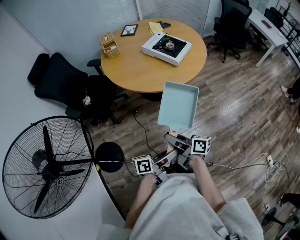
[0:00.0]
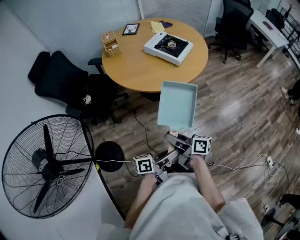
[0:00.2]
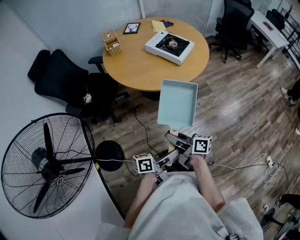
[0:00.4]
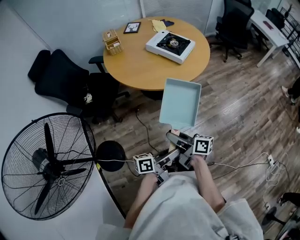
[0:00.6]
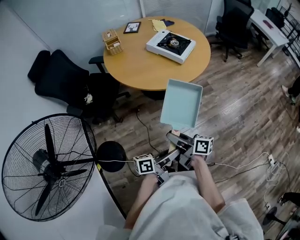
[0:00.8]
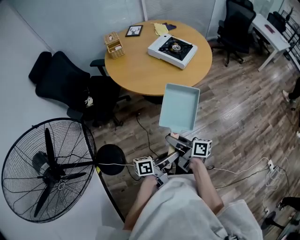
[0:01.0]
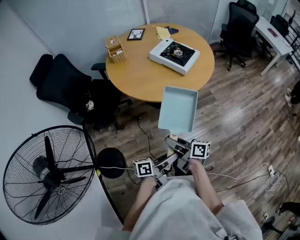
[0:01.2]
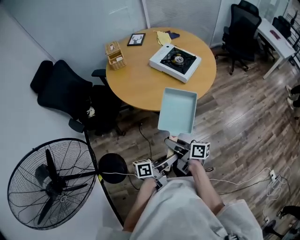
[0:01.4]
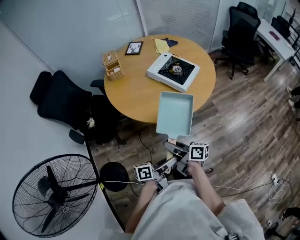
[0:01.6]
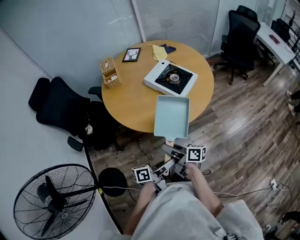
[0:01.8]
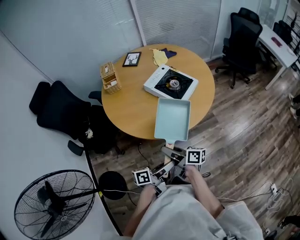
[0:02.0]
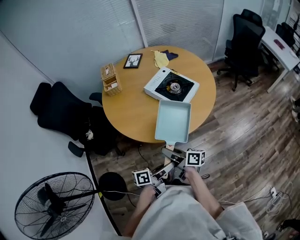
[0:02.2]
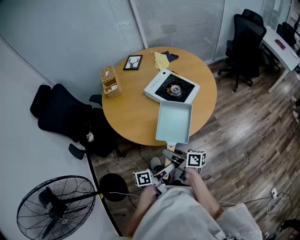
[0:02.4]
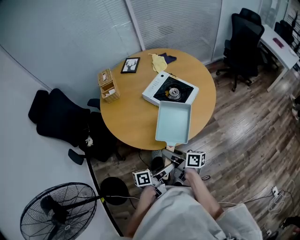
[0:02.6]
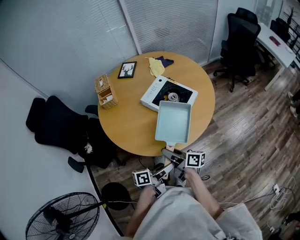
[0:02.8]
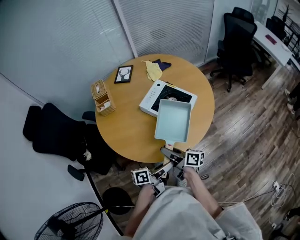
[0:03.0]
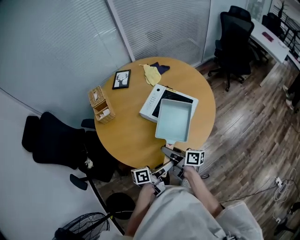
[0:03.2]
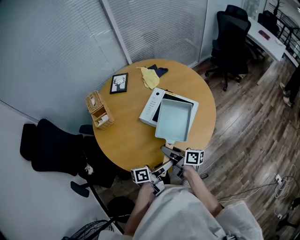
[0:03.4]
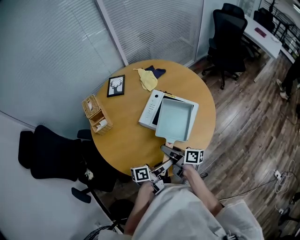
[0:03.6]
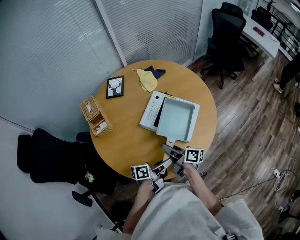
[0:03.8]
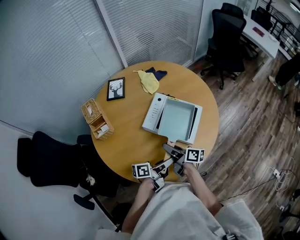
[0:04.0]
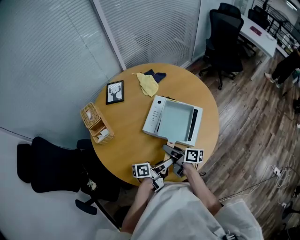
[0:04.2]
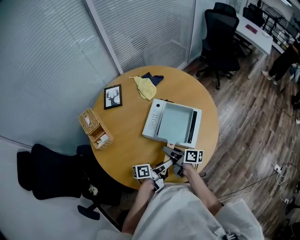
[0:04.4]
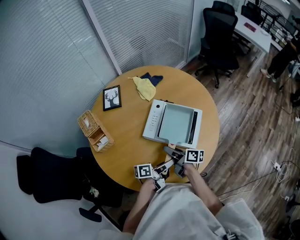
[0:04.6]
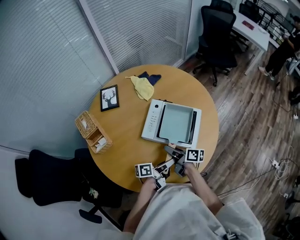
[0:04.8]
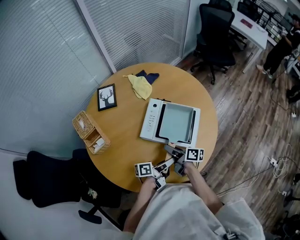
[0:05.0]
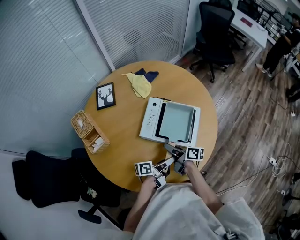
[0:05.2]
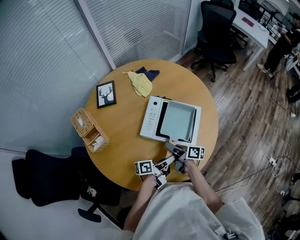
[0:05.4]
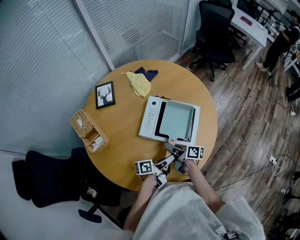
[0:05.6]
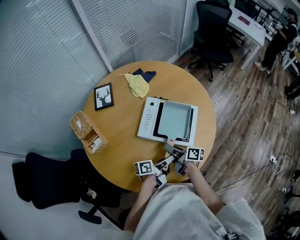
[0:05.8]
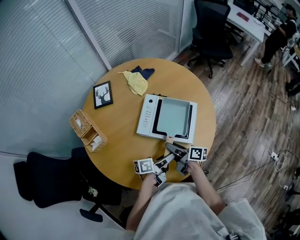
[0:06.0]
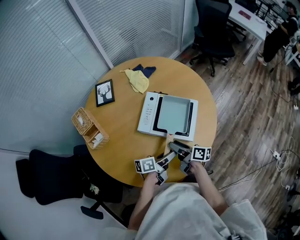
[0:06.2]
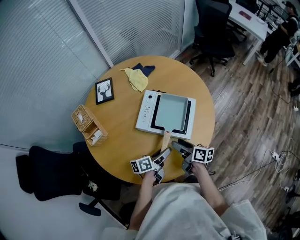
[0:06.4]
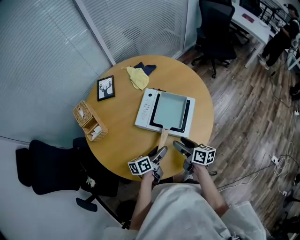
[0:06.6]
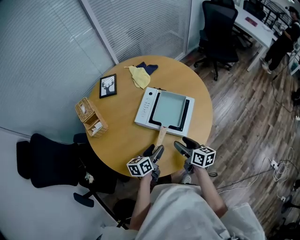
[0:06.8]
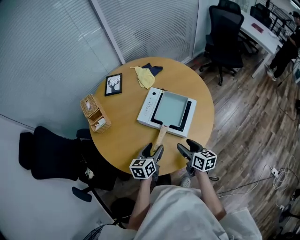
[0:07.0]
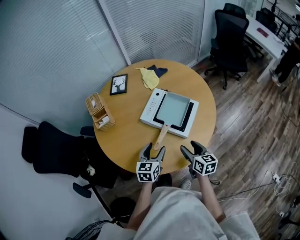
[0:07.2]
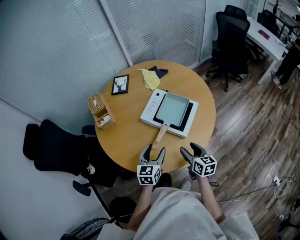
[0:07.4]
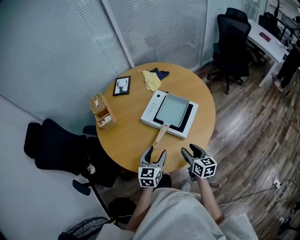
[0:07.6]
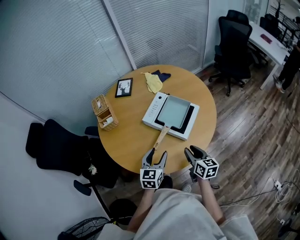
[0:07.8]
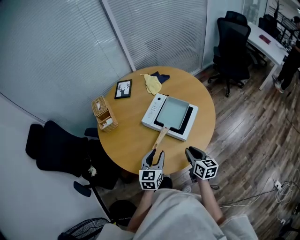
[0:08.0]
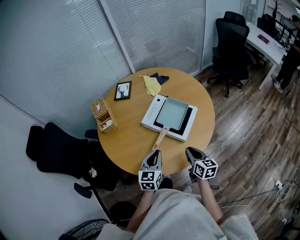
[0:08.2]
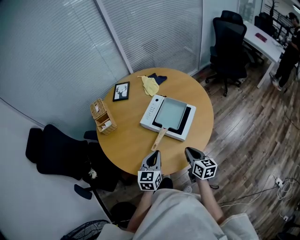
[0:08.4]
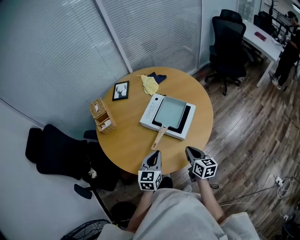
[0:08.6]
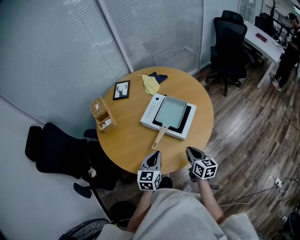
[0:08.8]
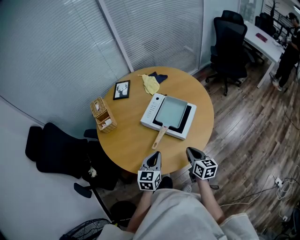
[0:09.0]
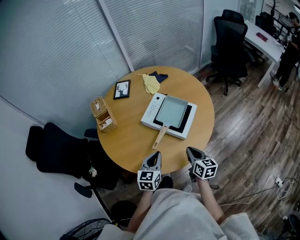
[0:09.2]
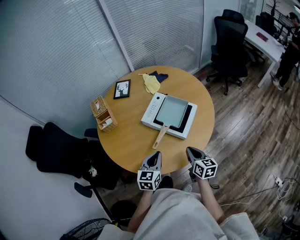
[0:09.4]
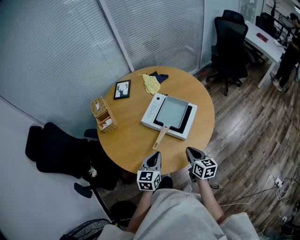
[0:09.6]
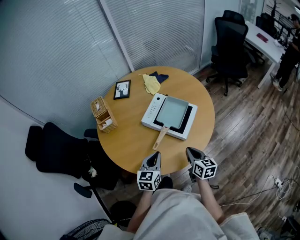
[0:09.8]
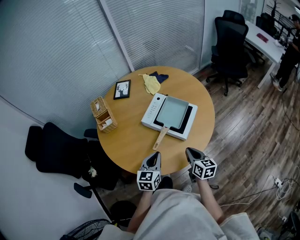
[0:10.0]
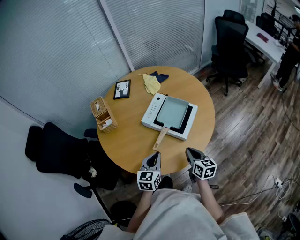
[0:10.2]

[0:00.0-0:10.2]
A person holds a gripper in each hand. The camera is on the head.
0:00.0 to 0:01.4: Both grippers travel together forward, approximately 10 cm.
0:01.4 to 0:03.0: The two grippers go approximately 25 cm forward.
0:03.0 to 0:04.4: The two grippers go about 20 cm forward and to the left.
0:04.4 to 0:05.8: The grippers make only small movements.
0:05.8 to 0:07.2: The right gripper heads to the right, backward and upward, covering roughly 15 cm, and rolls counterclockwise, seen from behind, by roughly 40 degrees; the left gripper goes some 5 cm upward, turns by about 70 degrees, and opens up.
0:07.2 to 0:08.8: The right gripper closes up, while the left gripper ends up approximately 5 cm from where it was, and closes up.
0:08.8 to 0:10.2: Both grippers stay put.

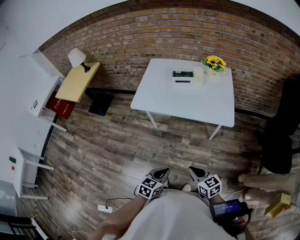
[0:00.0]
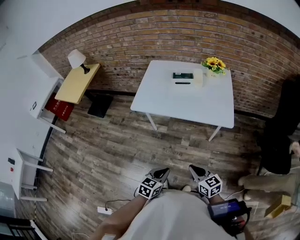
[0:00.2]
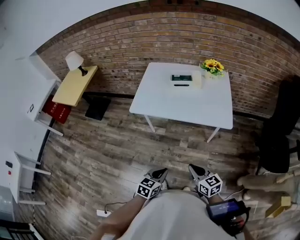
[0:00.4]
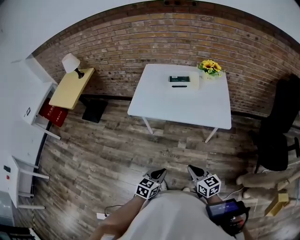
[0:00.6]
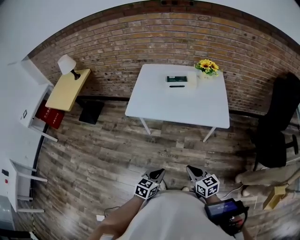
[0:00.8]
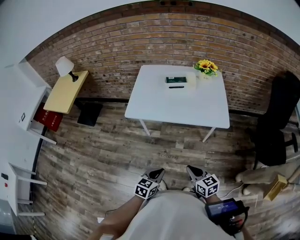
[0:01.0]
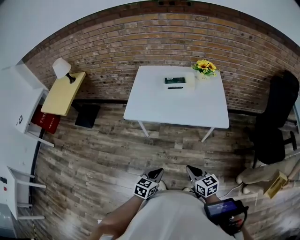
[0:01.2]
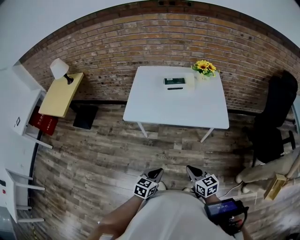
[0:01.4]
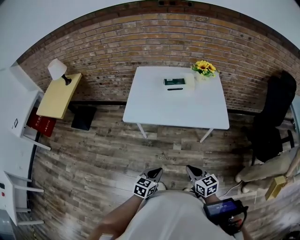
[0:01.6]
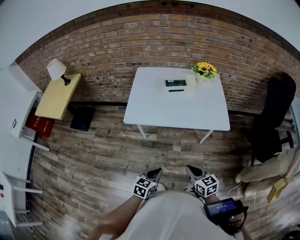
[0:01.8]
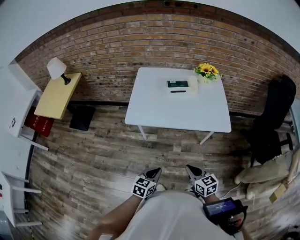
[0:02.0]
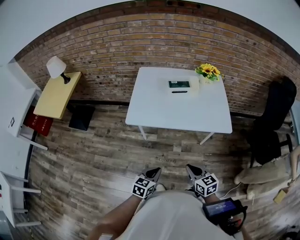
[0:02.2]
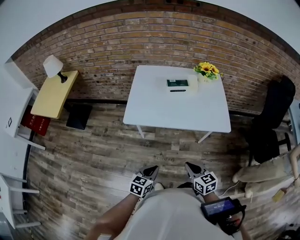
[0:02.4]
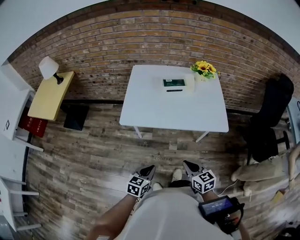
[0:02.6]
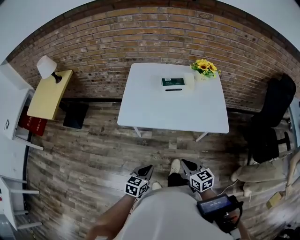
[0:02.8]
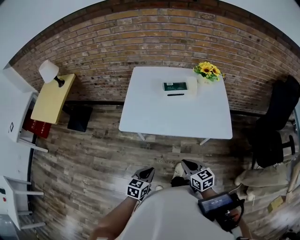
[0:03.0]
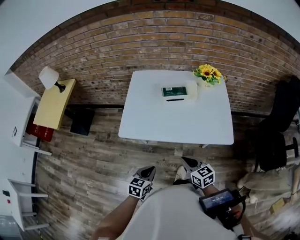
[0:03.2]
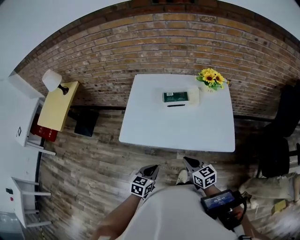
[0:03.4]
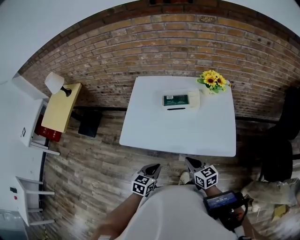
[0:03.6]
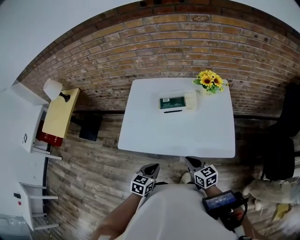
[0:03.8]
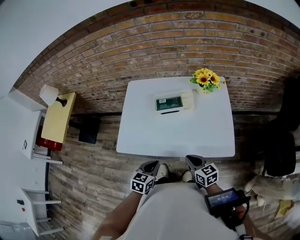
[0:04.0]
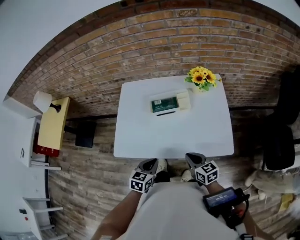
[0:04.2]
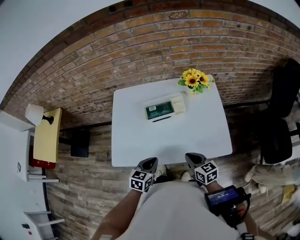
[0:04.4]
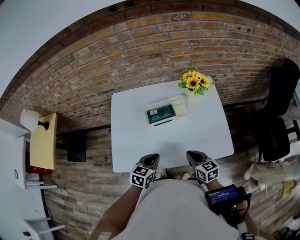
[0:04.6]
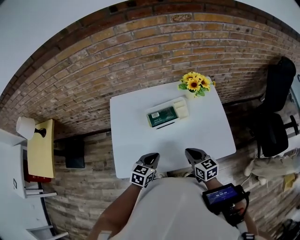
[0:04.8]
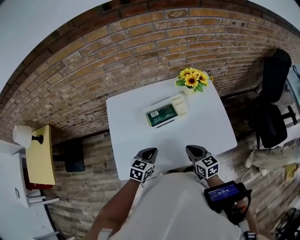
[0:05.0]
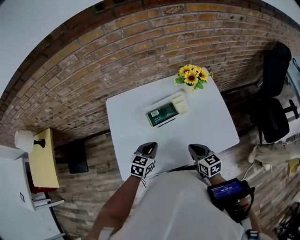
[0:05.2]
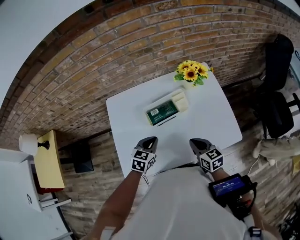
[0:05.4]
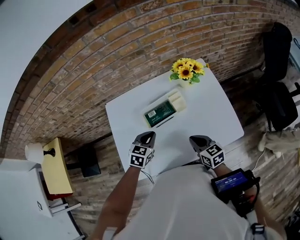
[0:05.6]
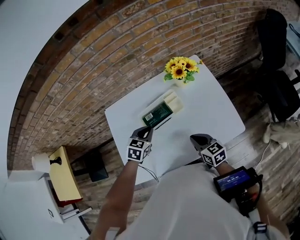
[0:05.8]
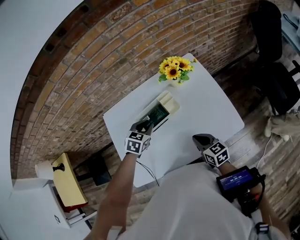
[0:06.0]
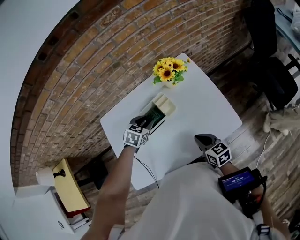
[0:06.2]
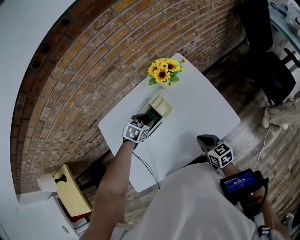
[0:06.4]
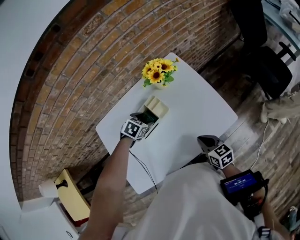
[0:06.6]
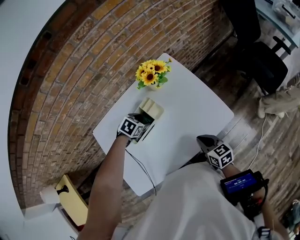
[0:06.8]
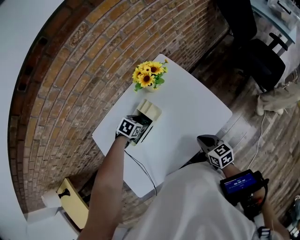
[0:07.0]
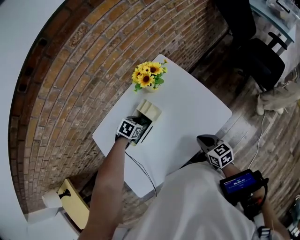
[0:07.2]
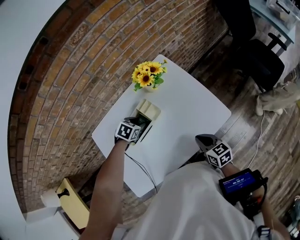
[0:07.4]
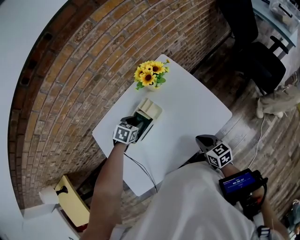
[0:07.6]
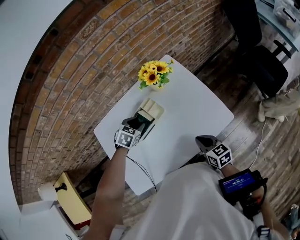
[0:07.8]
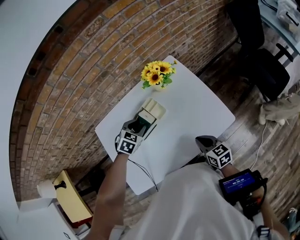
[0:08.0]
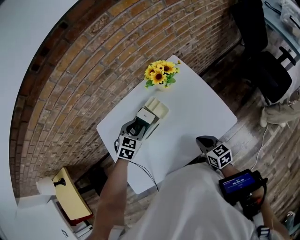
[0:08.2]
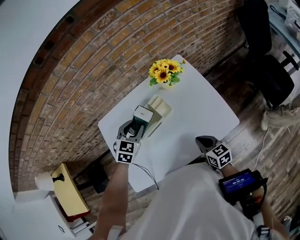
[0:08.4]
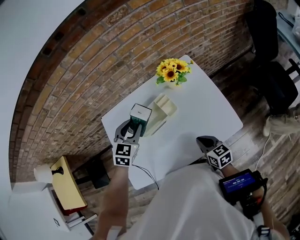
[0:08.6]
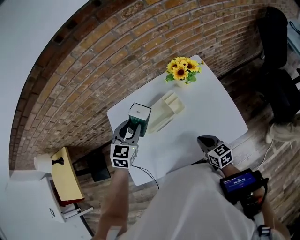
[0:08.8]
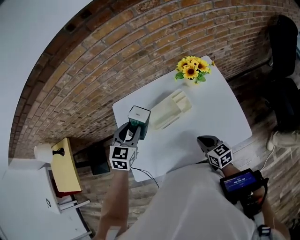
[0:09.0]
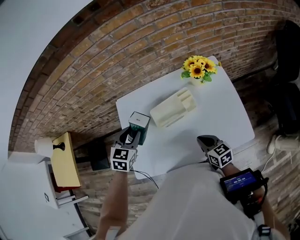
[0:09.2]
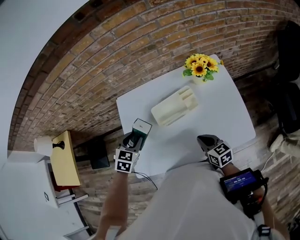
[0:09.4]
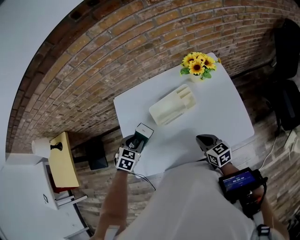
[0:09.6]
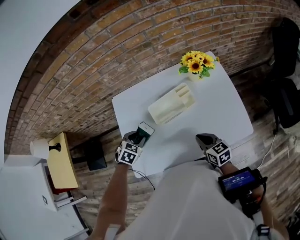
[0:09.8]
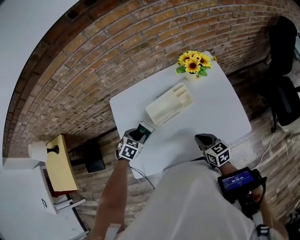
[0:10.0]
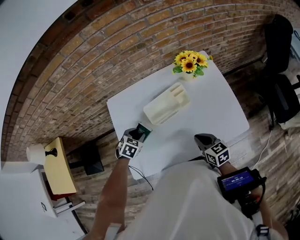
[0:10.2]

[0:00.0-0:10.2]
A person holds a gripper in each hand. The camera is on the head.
0:00.0 to 0:01.4: Both grippers travel together to the left, about 5 cm.
0:01.4 to 0:03.0: The left gripper goes some 10 cm forward and to the left; the right gripper goes some 10 cm forward.
0:03.0 to 0:04.4: The right gripper is displaced forward and to the right by about 20 cm, while the left gripper travels forward by approximately 25 cm.
0:04.4 to 0:05.8: The right gripper shifts roughly 10 cm forward, while the left gripper travels forward by about 20 cm, and turns by about 30 degrees.
0:05.8 to 0:07.2: The right gripper changes place by roughly 10 cm; the left gripper changes place by roughly 15 cm, rotates about 40 degrees, and opens.
0:07.2 to 0:08.8: The right gripper ends up roughly 10 cm from where it was. The left gripper is displaced upward by about 20 cm, and angles its fingers upward, by some 40 degrees.
0:08.8 to 0:10.2: The left gripper travels downward and to the left by approximately 20 cm, and tips its fingers downward by some 30 degrees.

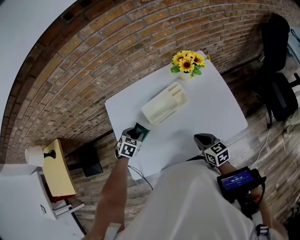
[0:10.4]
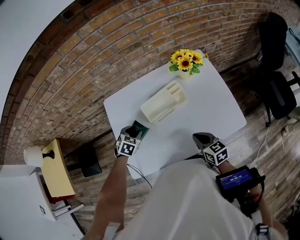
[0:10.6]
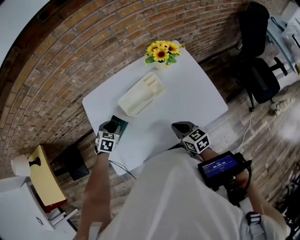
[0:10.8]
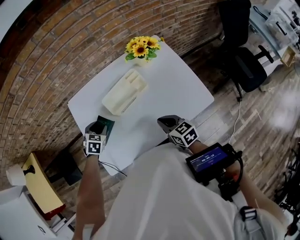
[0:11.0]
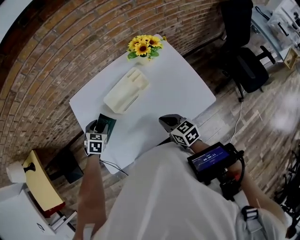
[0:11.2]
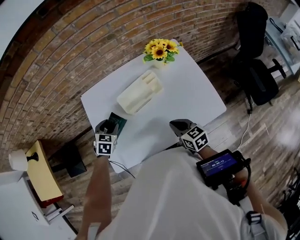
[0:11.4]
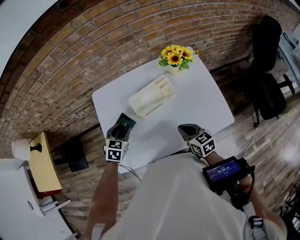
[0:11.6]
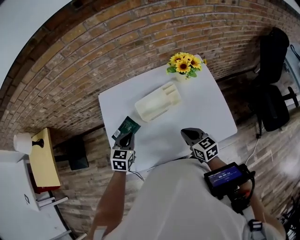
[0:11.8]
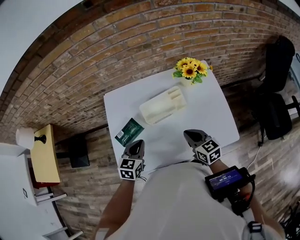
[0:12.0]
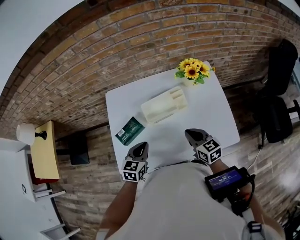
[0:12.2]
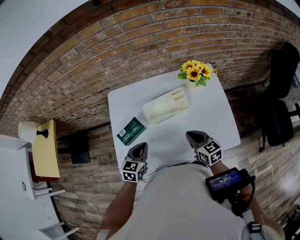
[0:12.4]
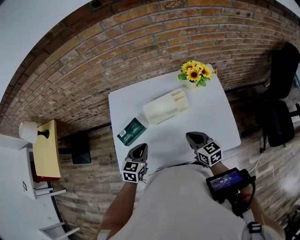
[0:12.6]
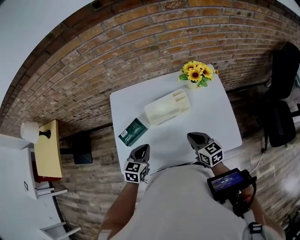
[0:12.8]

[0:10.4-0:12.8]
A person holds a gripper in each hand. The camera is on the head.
0:10.4 to 0:11.6: The left gripper changes place by about 5 cm.
0:11.6 to 0:12.8: The left gripper shifts approximately 10 cm backward, swivels roughly 20 degrees, and closes.

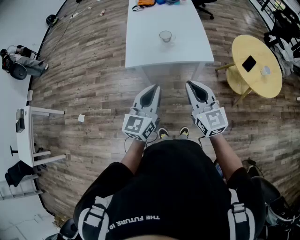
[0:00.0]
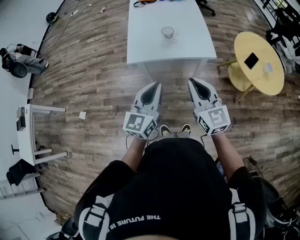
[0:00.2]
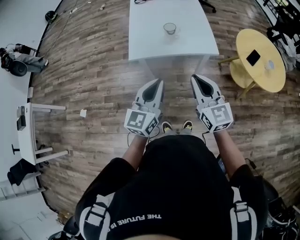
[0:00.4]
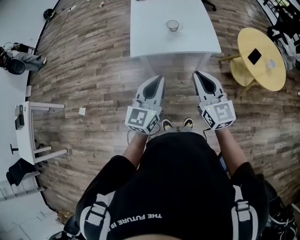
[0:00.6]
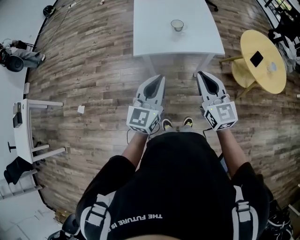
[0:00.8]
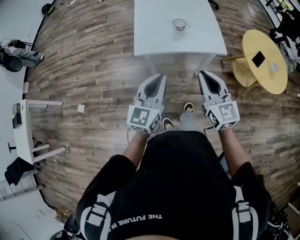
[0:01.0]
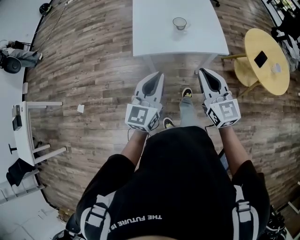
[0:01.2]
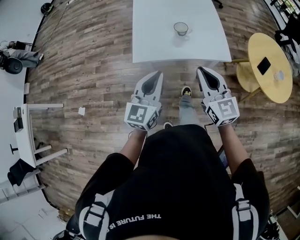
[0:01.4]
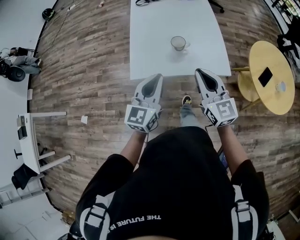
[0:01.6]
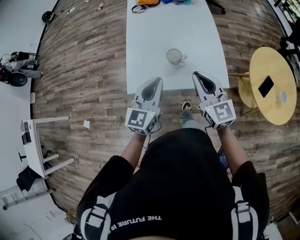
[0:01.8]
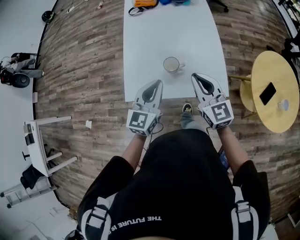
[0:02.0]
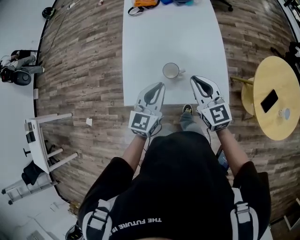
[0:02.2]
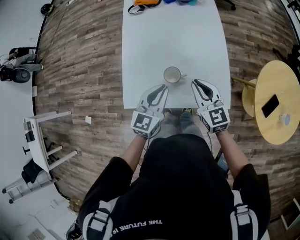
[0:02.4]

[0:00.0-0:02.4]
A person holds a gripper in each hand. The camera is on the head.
0:00.0 to 0:01.2: The right gripper shifts roughly 5 cm forward, while the left gripper shifts approximately 10 cm to the left and forward.
0:01.2 to 0:02.4: Both grippers move forward, some 35 cm.
